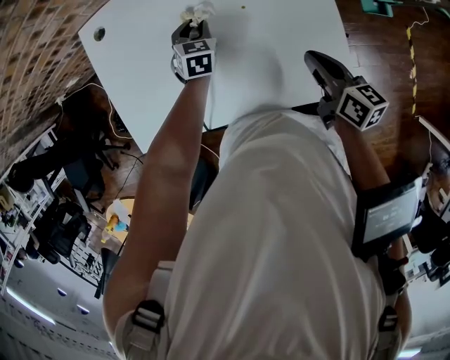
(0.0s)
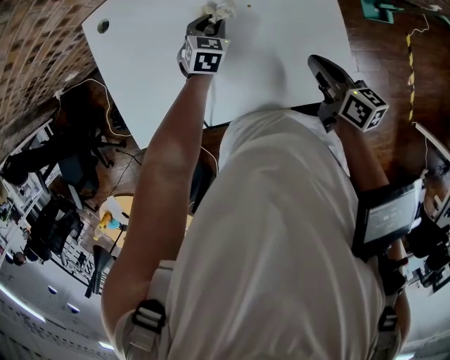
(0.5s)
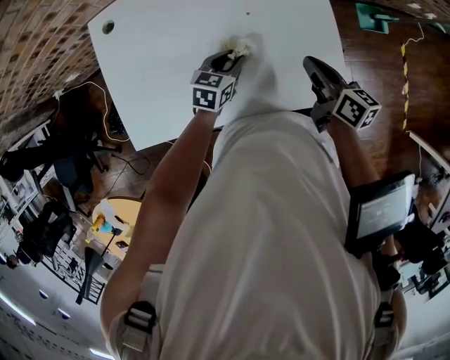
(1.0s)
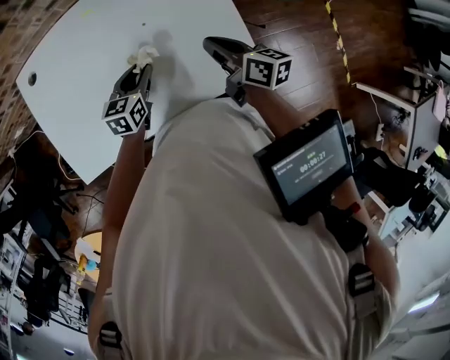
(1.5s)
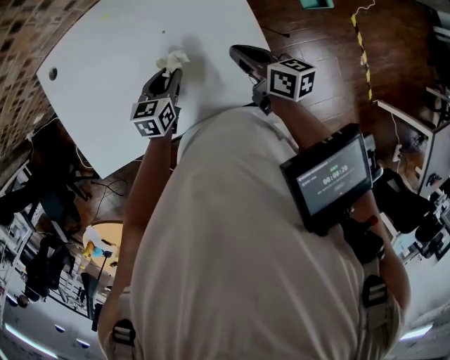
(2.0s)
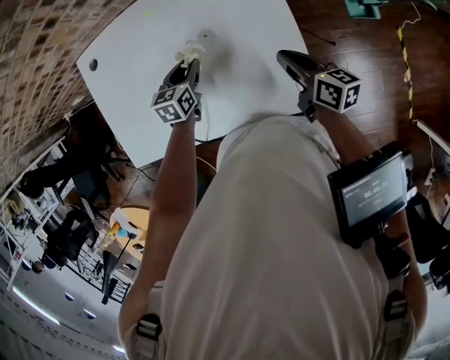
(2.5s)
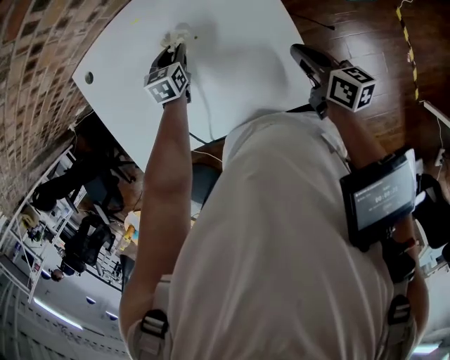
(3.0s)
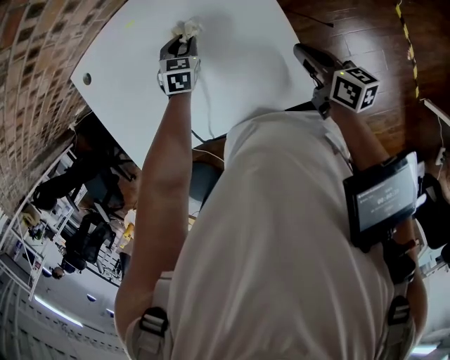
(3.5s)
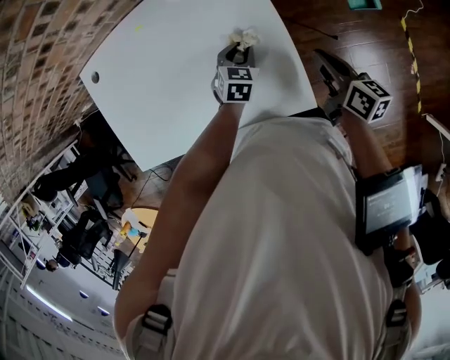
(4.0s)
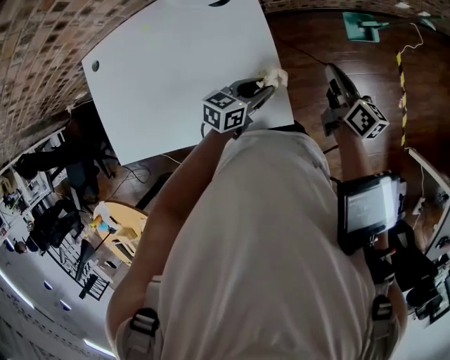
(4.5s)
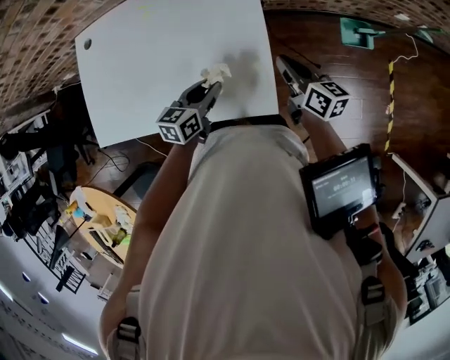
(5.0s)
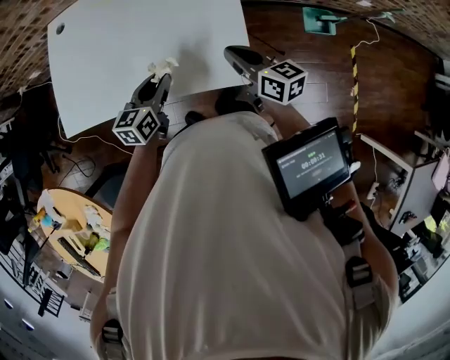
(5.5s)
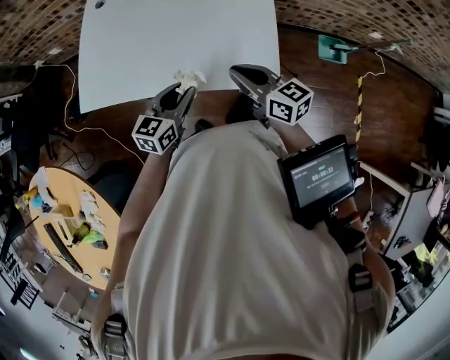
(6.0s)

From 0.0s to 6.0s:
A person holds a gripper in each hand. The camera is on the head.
From 0.0s to 2.0s: The left gripper moves backward and to the right, about 20 cm, and changes its angle by roughly 30 degrees; the right gripper moves to the right, approximately 5 cm.
From 2.0s to 4.0s: The left gripper moves to the right and forward, about 15 cm, and swivels some 20 degrees; the right gripper goes approximately 15 cm to the right.
From 4.0s to 6.0s: The right gripper changes place by approximately 25 cm, and turns by approximately 40 degrees. Meanwhile the left gripper moves roughly 30 cm, and changes its angle by approximately 40 degrees.

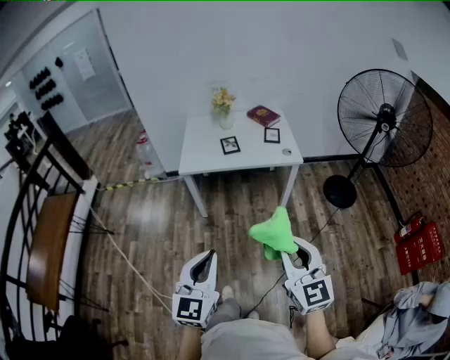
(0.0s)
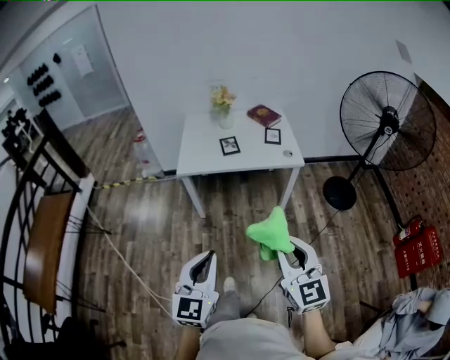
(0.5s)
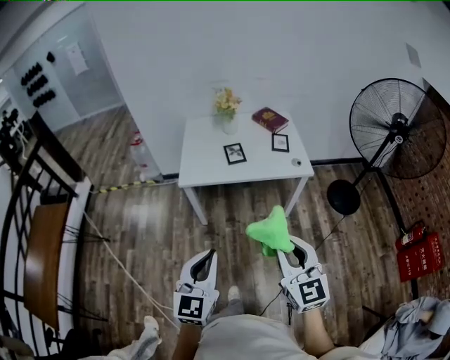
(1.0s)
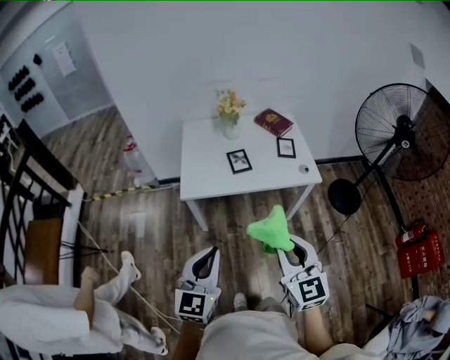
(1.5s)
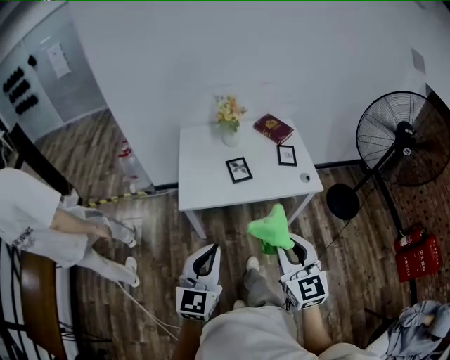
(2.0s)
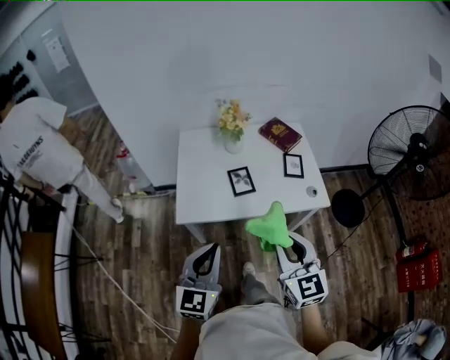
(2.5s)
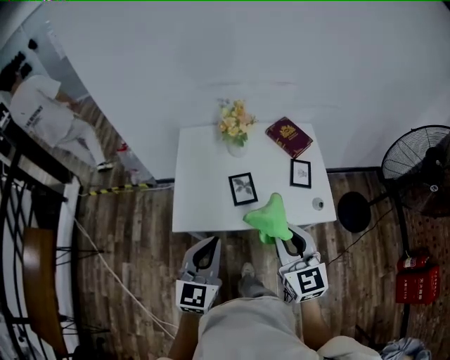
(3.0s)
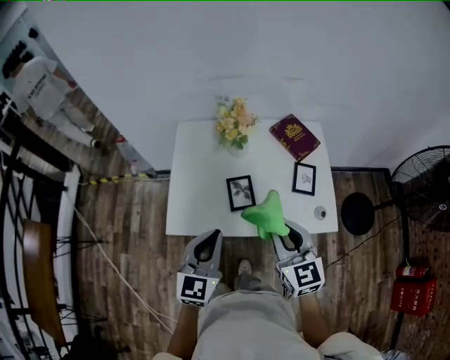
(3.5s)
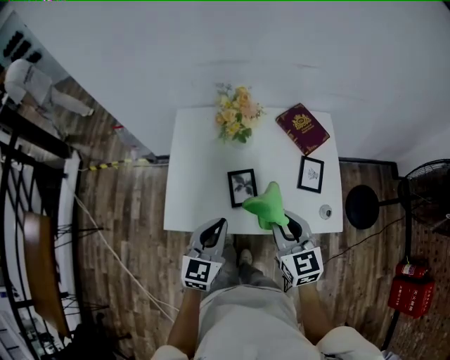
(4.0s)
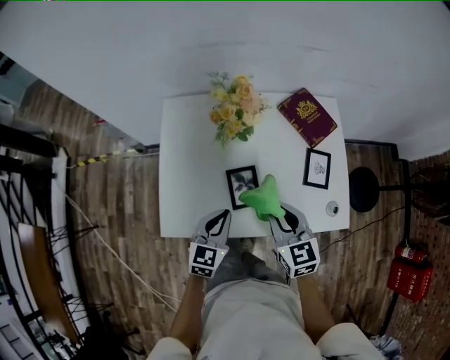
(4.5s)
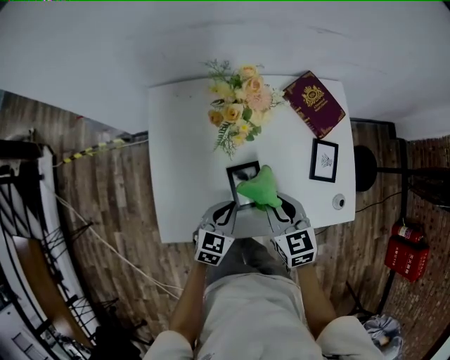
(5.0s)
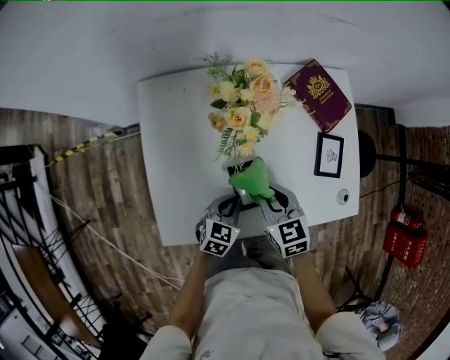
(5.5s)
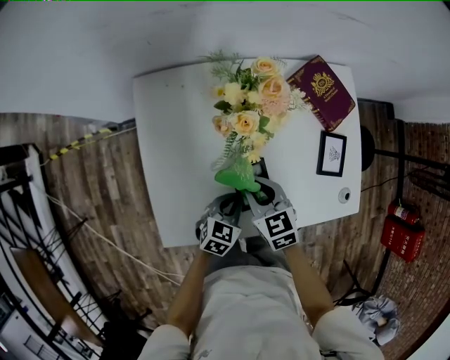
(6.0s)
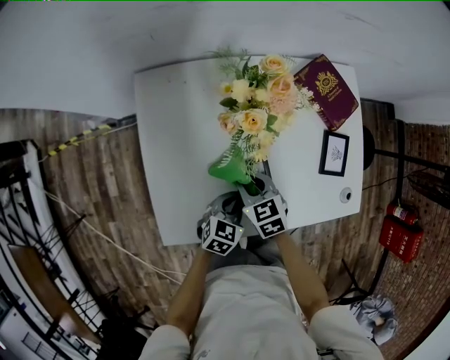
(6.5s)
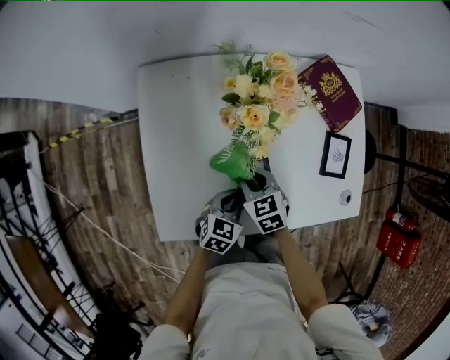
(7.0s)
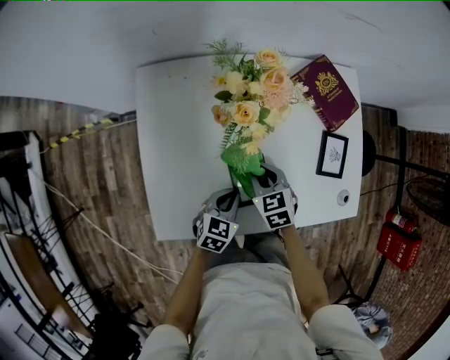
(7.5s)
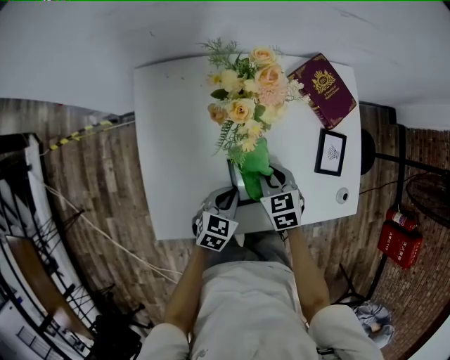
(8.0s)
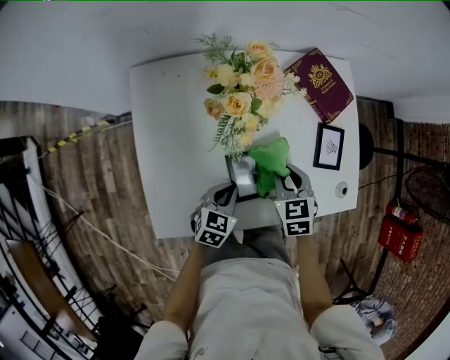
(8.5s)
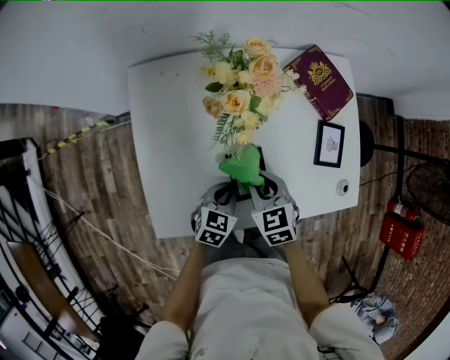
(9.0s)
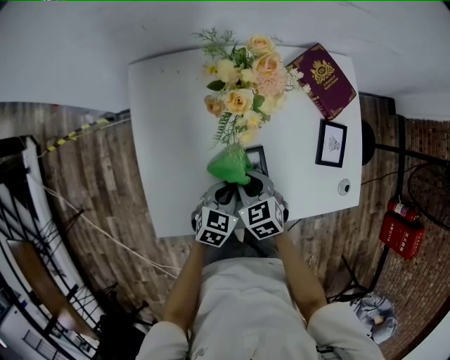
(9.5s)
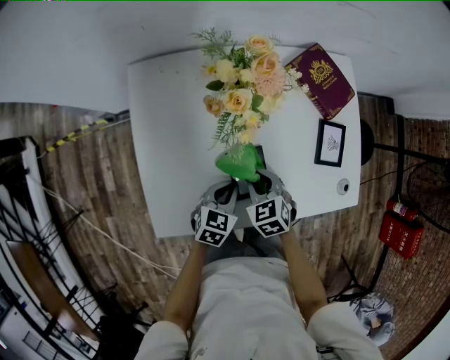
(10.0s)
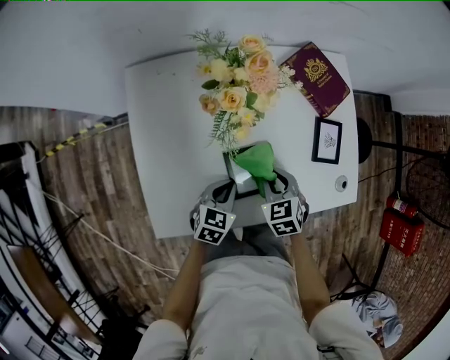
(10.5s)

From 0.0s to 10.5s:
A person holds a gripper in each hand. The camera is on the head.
From 0.0s to 2.0s: The two grippers go roughly 30 cm forward.
From 2.0s to 4.0s: Both grippers move forward, about 35 cm.
From 4.0s to 6.5s: The right gripper moves downward, to the left and forward, approximately 30 cm, and turns by some 30 degrees; the left gripper goes about 25 cm downward and forward, and changes its angle by some 40 degrees.
From 6.5s to 8.5s: The right gripper shifts some 15 cm to the right.
From 8.5s to 10.5s: The right gripper moves roughly 10 cm to the left and comes back.

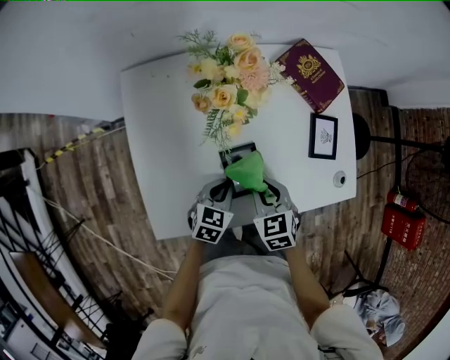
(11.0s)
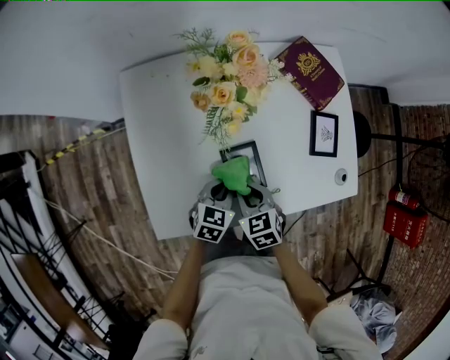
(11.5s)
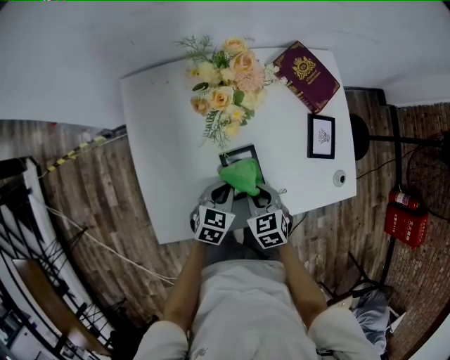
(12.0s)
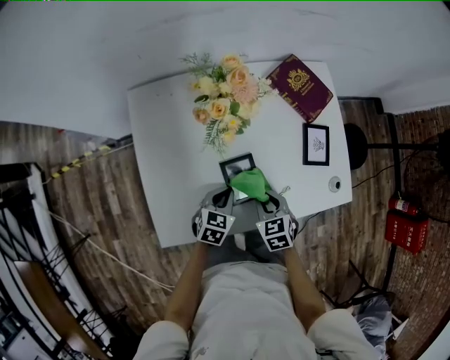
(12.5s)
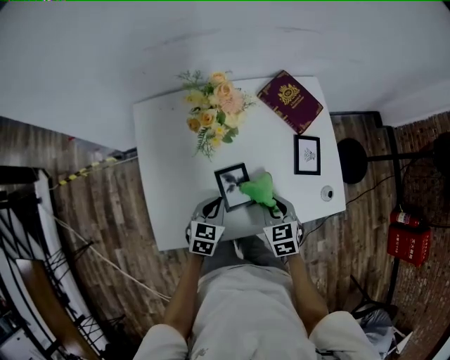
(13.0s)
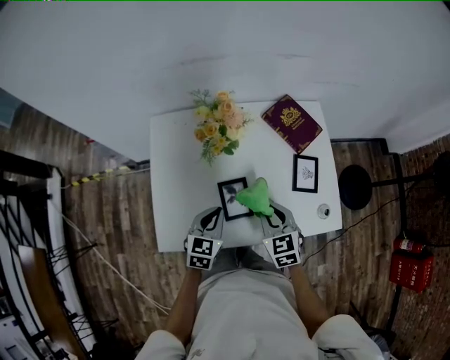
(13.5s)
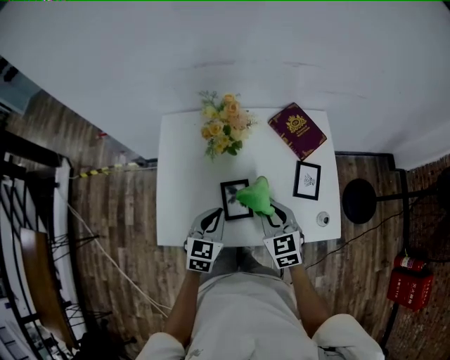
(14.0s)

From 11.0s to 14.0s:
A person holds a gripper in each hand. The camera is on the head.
From 12.5s to 14.0s: Both grippers travel together upward, approximately 15 cm. The right gripper rotates roughly 30 degrees. The left gripper rotates approximately 20 degrees.

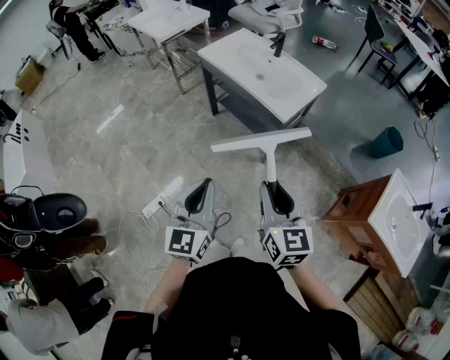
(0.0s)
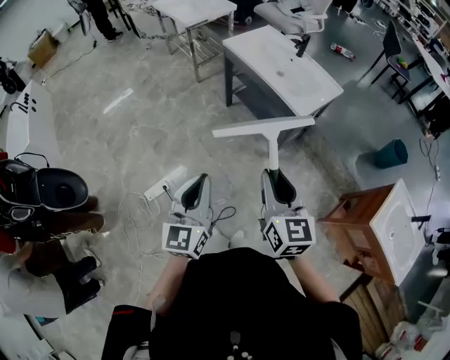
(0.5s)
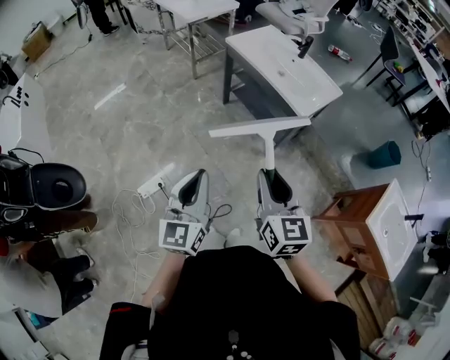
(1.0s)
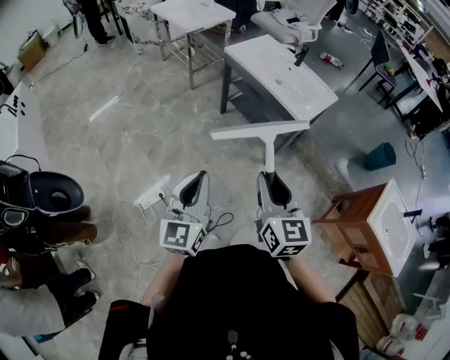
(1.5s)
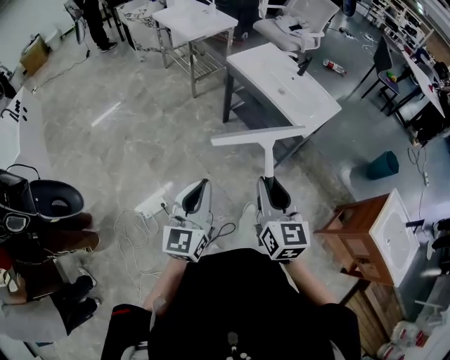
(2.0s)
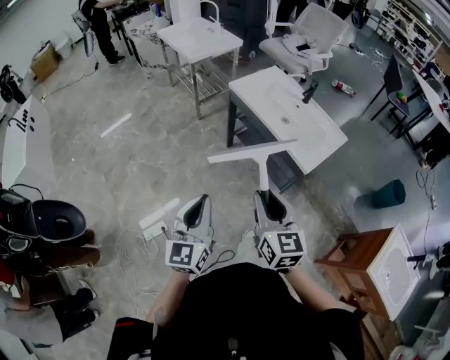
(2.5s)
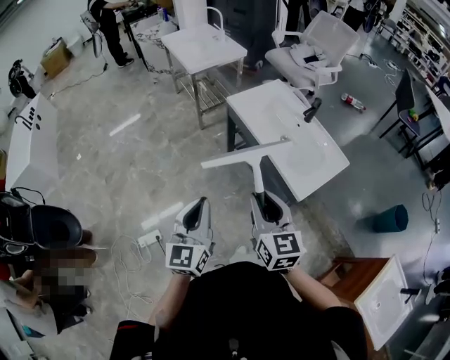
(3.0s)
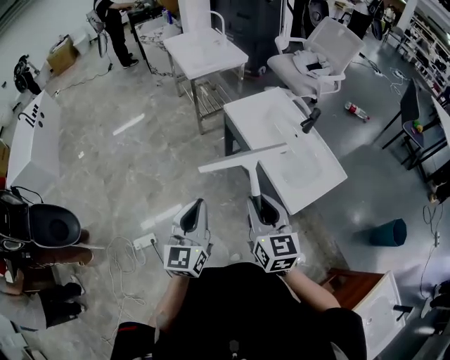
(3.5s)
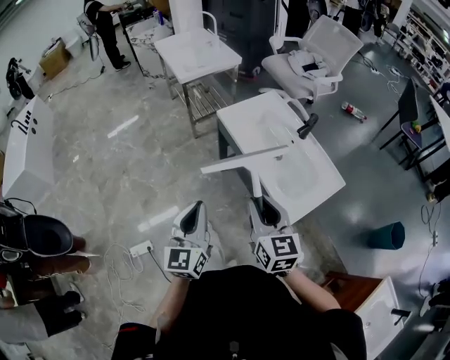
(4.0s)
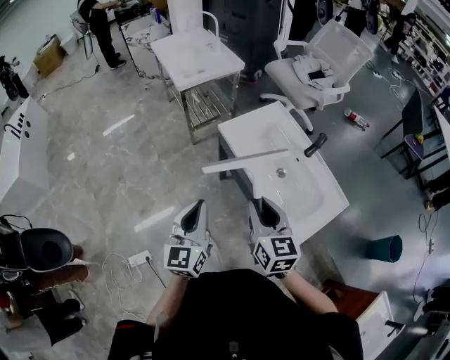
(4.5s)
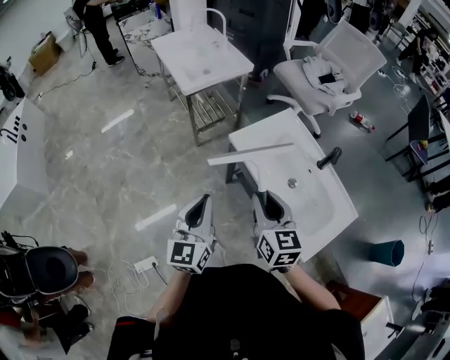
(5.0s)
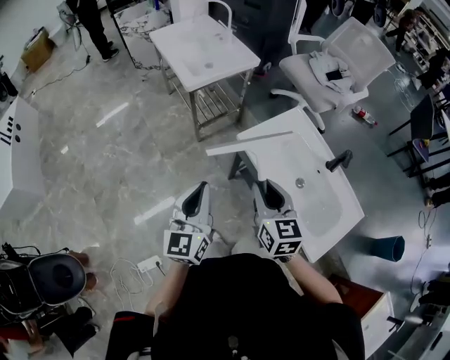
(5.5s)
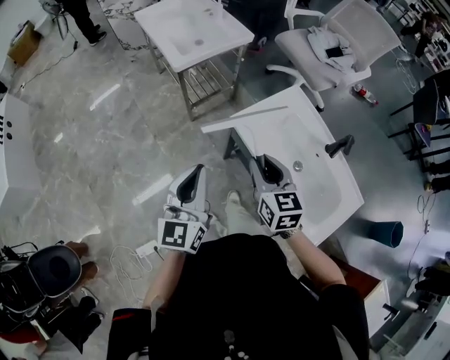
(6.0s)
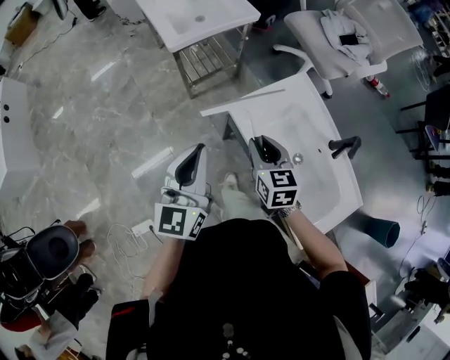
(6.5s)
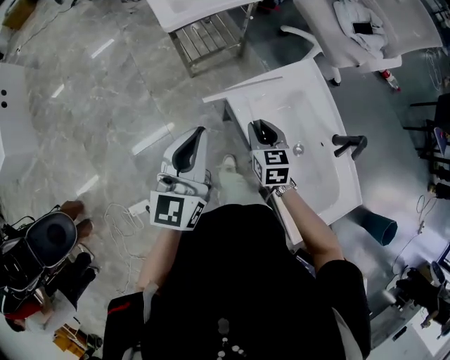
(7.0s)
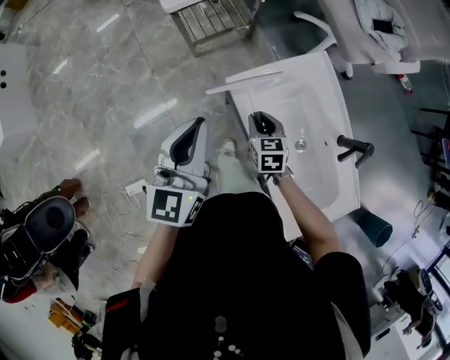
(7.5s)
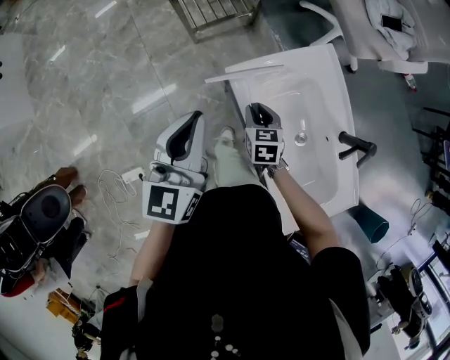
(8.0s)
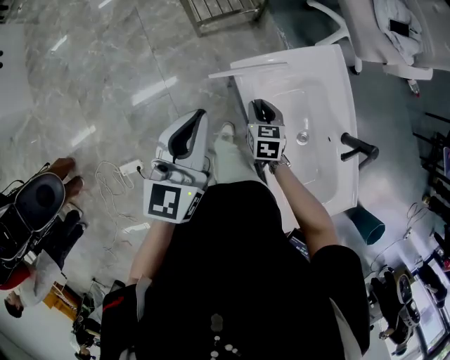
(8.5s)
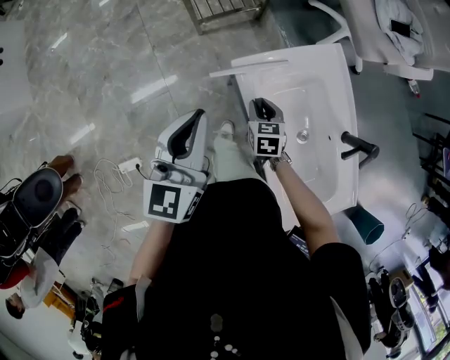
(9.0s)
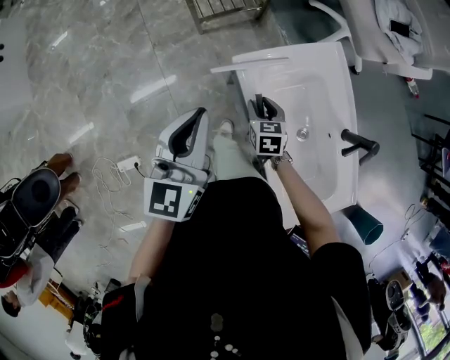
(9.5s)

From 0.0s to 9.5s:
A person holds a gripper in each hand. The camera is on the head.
From 0.0s to 2.0s: Both grippers travel together to the left, approximately 15 cm.
From 2.0s to 4.0s: The grippers both shift forward and to the right by about 35 cm.
From 4.0s to 5.5s: Both grippers move forward and to the left, approximately 30 cm.
From 5.5s to 7.5s: The right gripper travels downward and forward by roughly 30 cm, and changes its angle by approximately 30 degrees. The left gripper goes roughly 20 cm forward and to the right.
From 7.5s to 9.5s: There are only small adjustments of the grippers.
